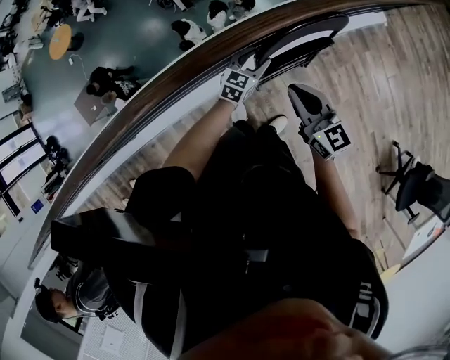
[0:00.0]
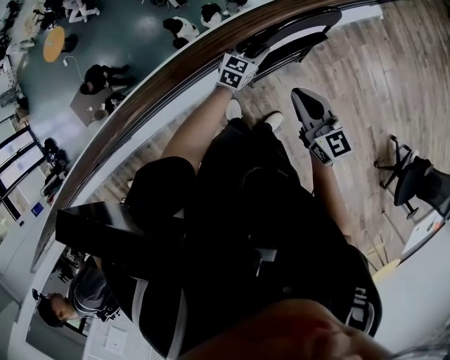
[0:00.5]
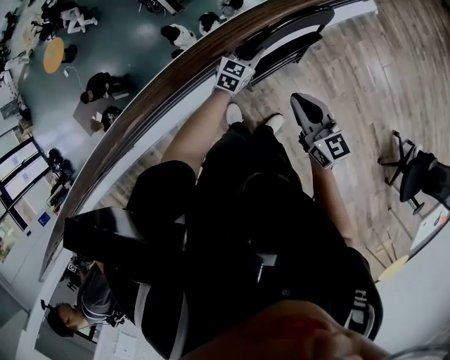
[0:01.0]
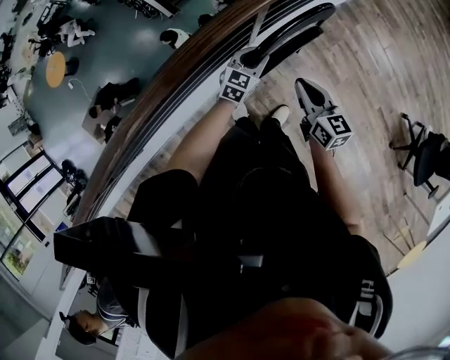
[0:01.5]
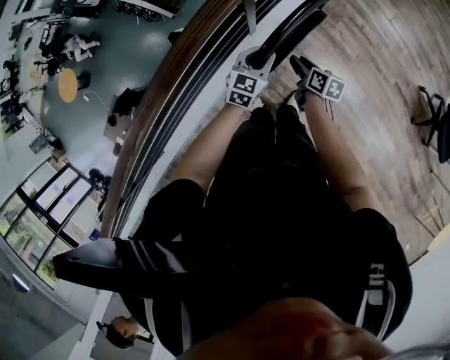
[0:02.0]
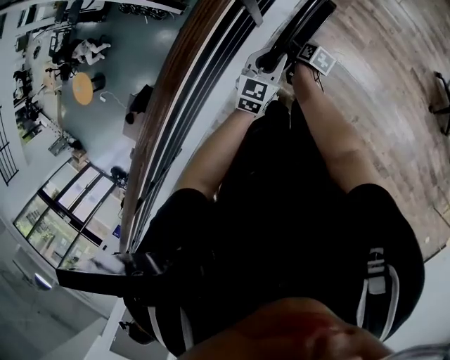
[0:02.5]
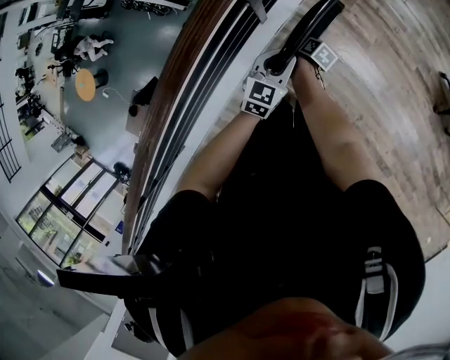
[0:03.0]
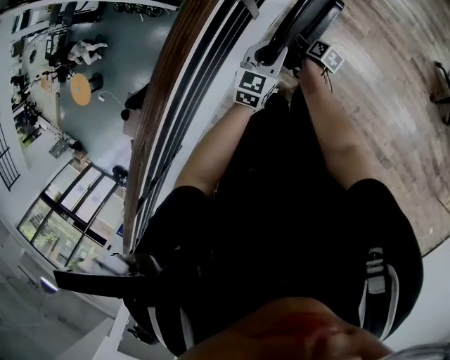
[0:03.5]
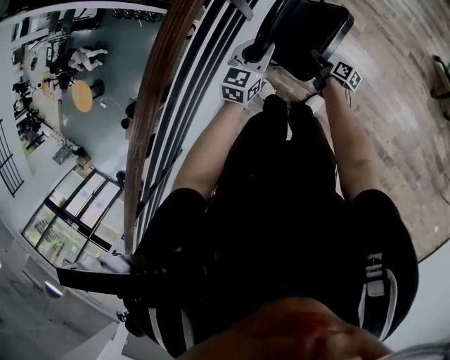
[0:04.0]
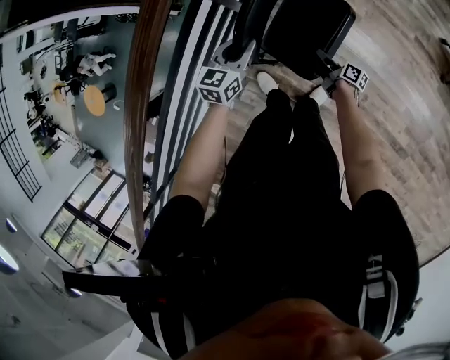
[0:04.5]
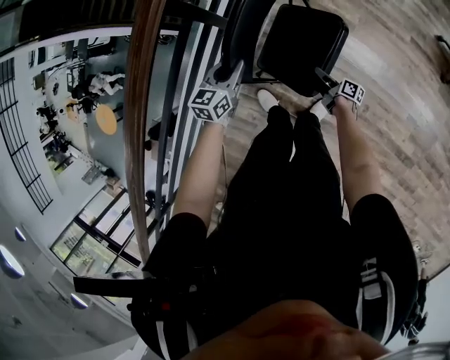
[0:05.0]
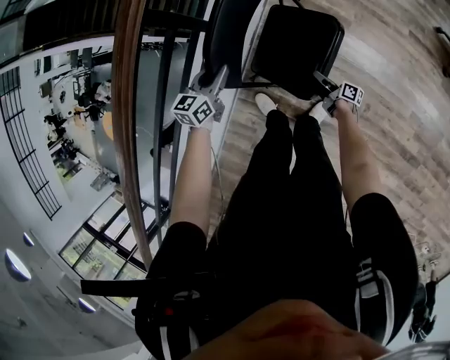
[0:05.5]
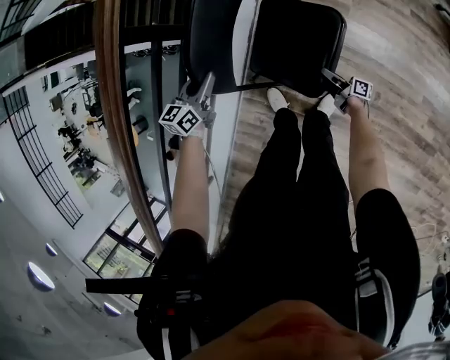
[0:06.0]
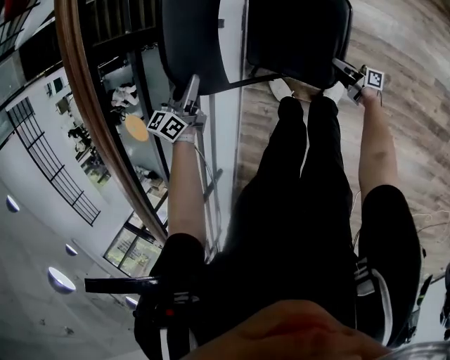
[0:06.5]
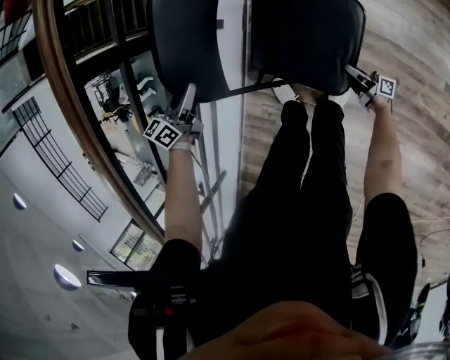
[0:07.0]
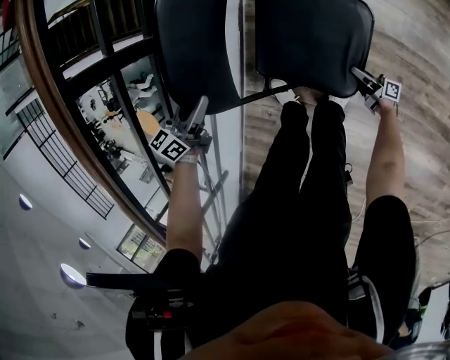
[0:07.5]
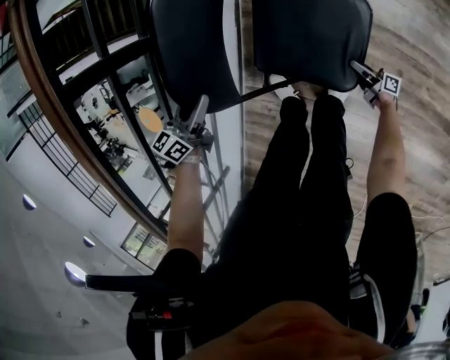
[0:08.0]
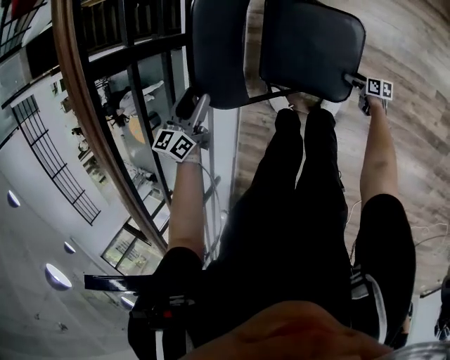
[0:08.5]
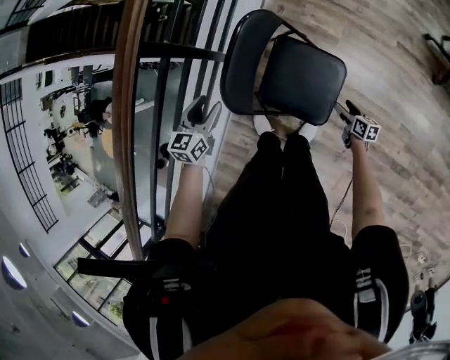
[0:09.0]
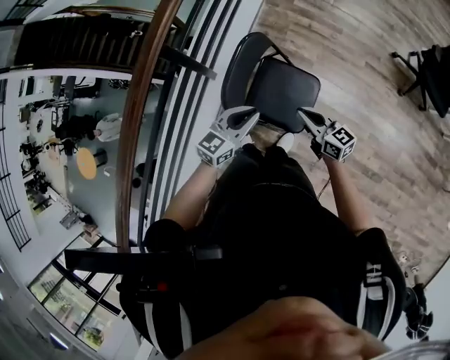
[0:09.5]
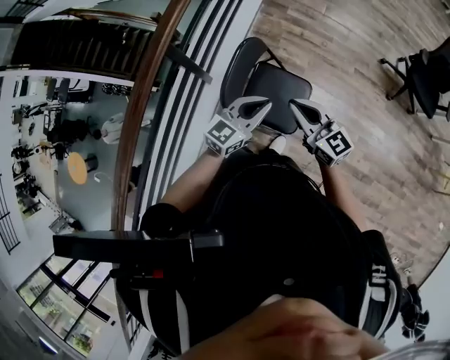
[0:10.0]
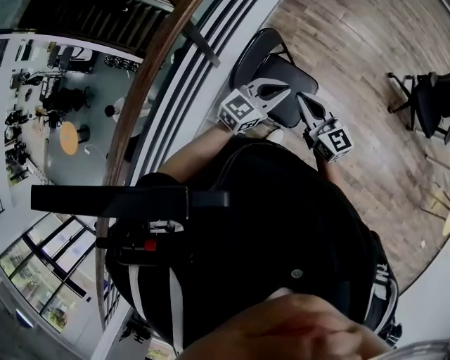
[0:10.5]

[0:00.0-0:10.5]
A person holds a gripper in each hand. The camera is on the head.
0:00.0 to 0:02.0: The right gripper moves downward and to the right, approximately 30 cm, swivels about 60 degrees, and opens up. The left gripper heads to the right, covering some 10 cm, and closes up.
0:02.0 to 0:04.0: The right gripper goes approximately 20 cm downward and to the right, and turns by some 30 degrees.
0:04.0 to 0:06.5: The left gripper is displaced downward by roughly 10 cm, while the right gripper heads to the right, downward and backward, covering some 30 cm, and tilts its fingers approximately 40 degrees upward.
0:06.5 to 0:08.5: The right gripper travels downward, to the right and backward by approximately 35 cm, points its fingers approximately 40 degrees further downward, and opens. The left gripper shifts some 25 cm to the right, backward and downward, and opens.
0:08.5 to 0:10.5: The left gripper heads upward, covering about 50 cm, rotates approximately 40 degrees, and closes its fingers, while the right gripper travels upward by some 90 cm, rotates around the line of its fingers by approximately 60 degrees, counterclockwise from behind, and closes.

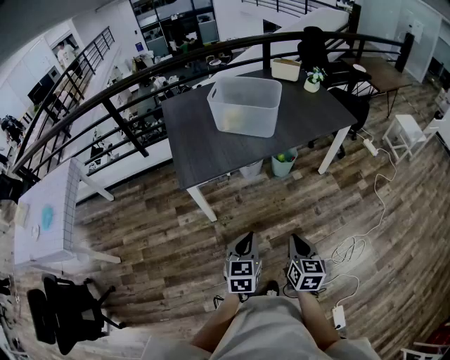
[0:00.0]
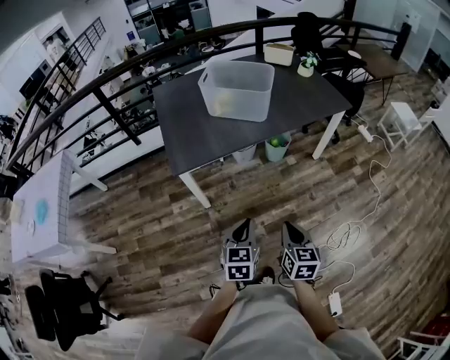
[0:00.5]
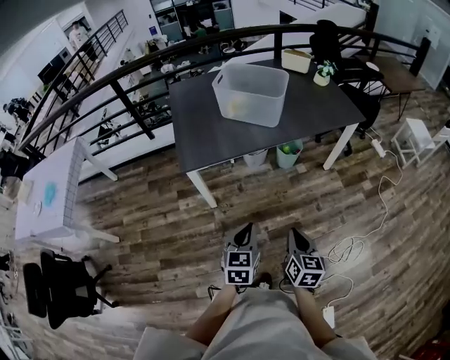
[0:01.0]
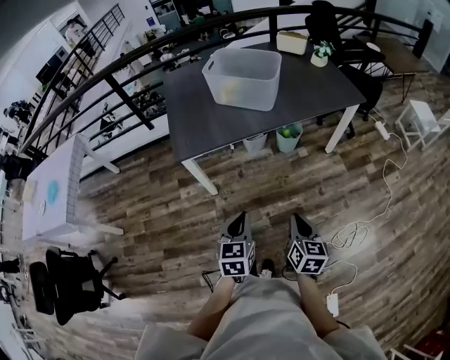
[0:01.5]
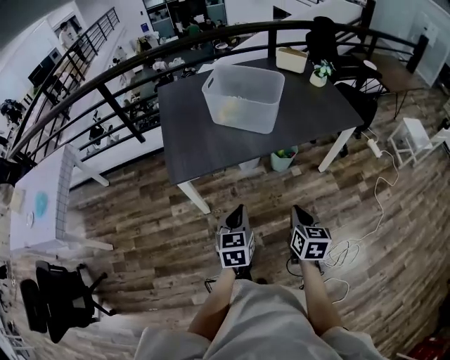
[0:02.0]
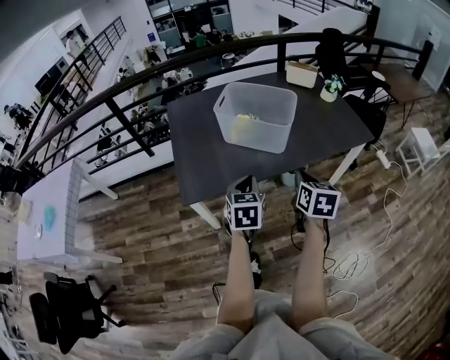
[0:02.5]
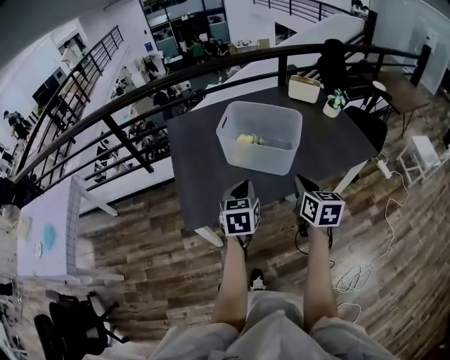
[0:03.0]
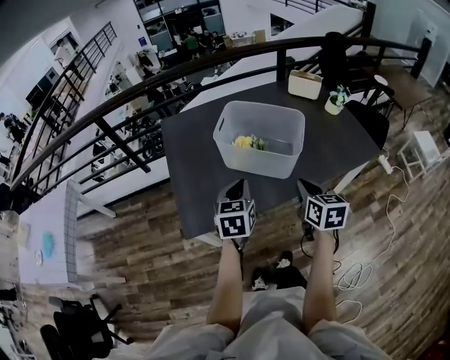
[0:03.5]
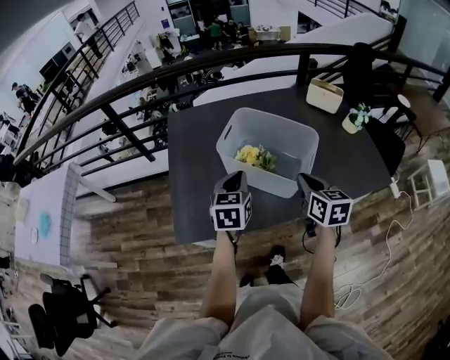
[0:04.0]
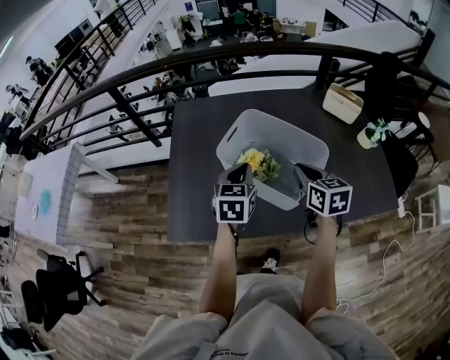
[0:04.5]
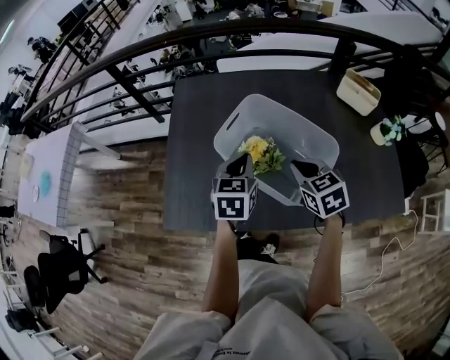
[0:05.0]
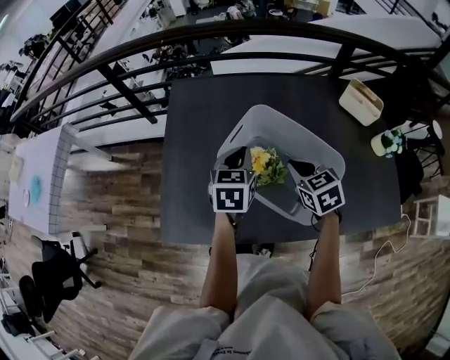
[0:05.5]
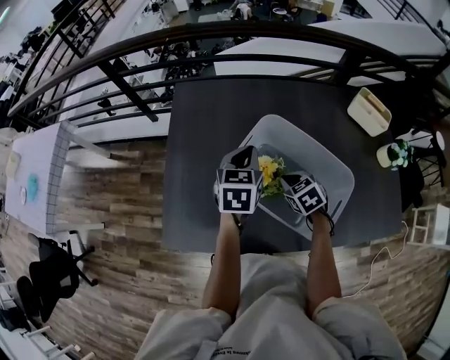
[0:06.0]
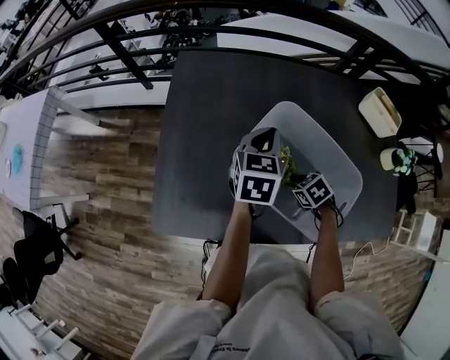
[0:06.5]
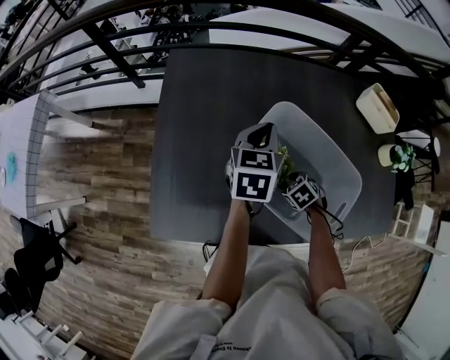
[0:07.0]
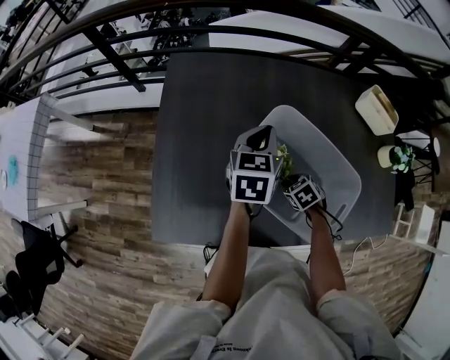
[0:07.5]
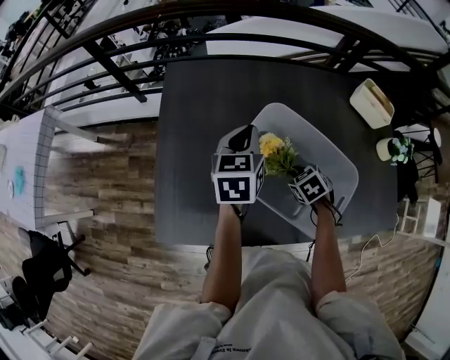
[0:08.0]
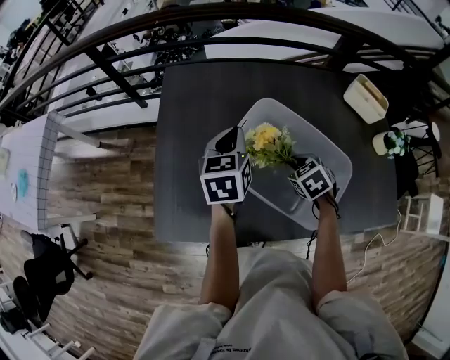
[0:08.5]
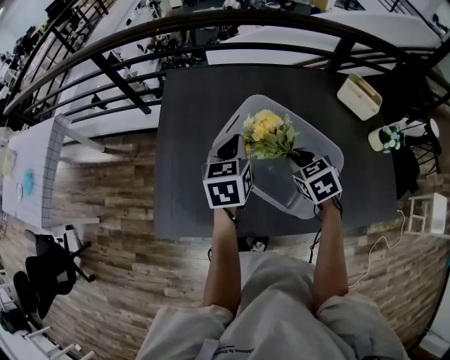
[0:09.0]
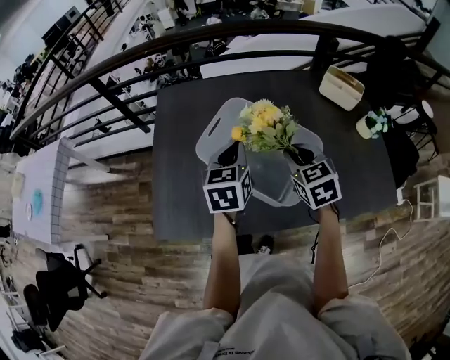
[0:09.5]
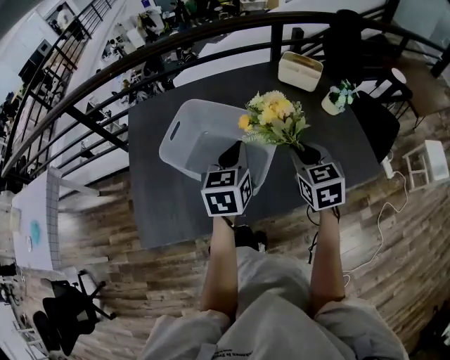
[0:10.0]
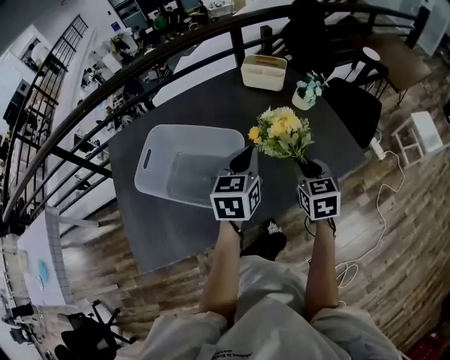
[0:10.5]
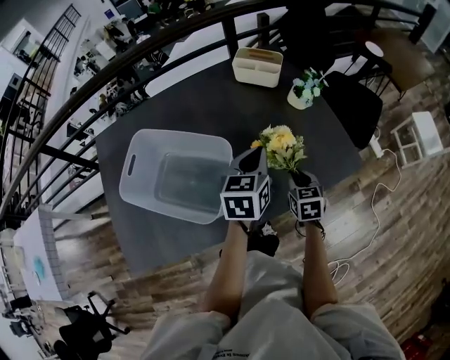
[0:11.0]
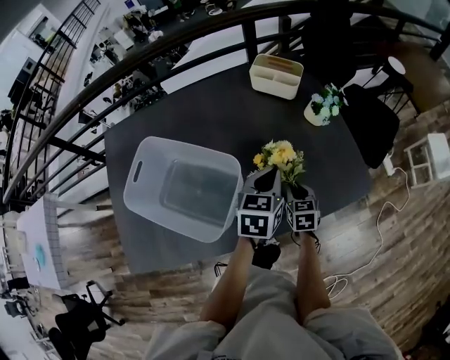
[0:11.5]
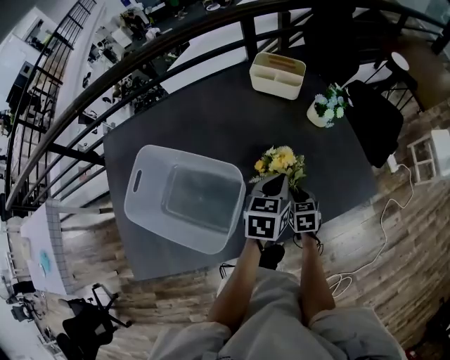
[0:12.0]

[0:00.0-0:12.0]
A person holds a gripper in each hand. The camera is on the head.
0:00.0 to 0:02.0: The grippers both shift forward by approximately 15 cm.
0:02.0 to 0:04.0: The two grippers go some 40 cm forward.
0:04.0 to 0:06.0: The right gripper shifts approximately 25 cm forward and downward, and tilts its fingers some 30 degrees downward. Meanwhile the left gripper travels forward by some 20 cm.
0:06.0 to 0:08.0: The right gripper is displaced downward by roughly 5 cm, and opens, then closes again.
0:08.0 to 0:10.0: The left gripper heads backward and to the right, covering some 25 cm; the right gripper goes some 30 cm upward, to the right and backward, and angles its fingers upward, by roughly 40 degrees.
0:10.0 to 0:12.0: The left gripper travels to the right, forward and downward by roughly 30 cm, and swivels about 20 degrees. The right gripper travels downward and to the right by approximately 30 cm, and turns by roughly 30 degrees.

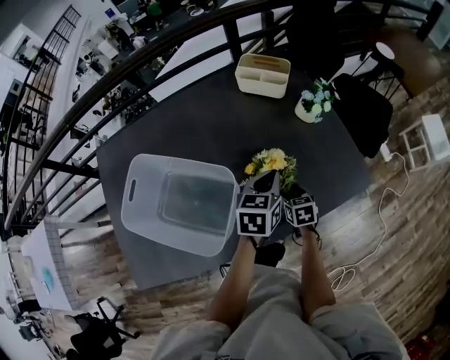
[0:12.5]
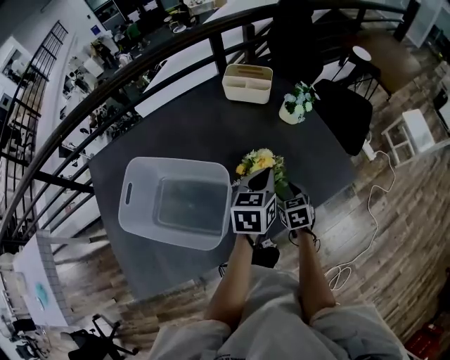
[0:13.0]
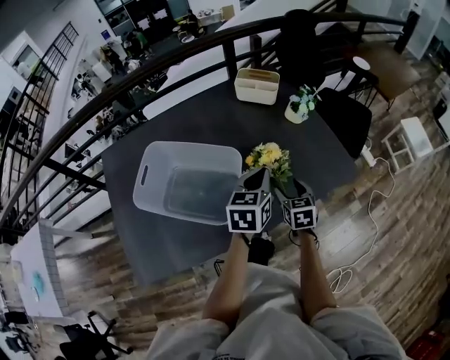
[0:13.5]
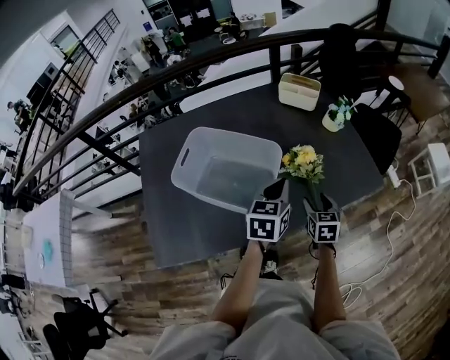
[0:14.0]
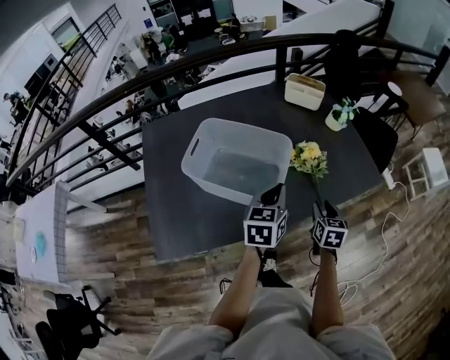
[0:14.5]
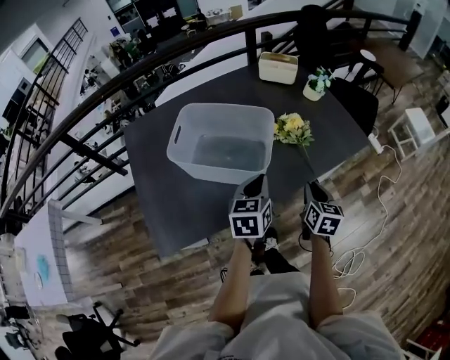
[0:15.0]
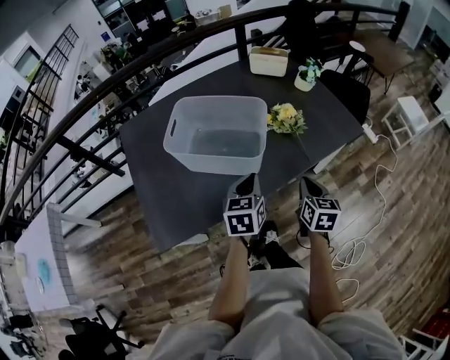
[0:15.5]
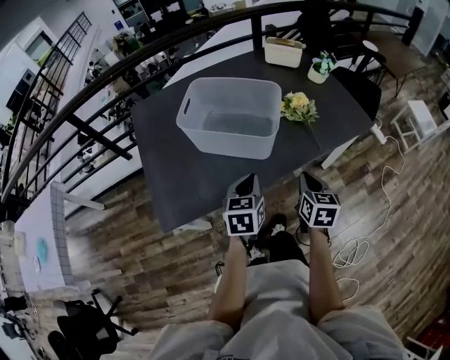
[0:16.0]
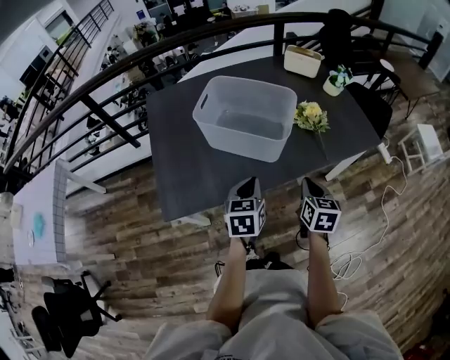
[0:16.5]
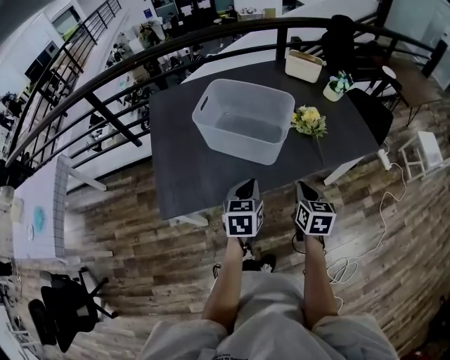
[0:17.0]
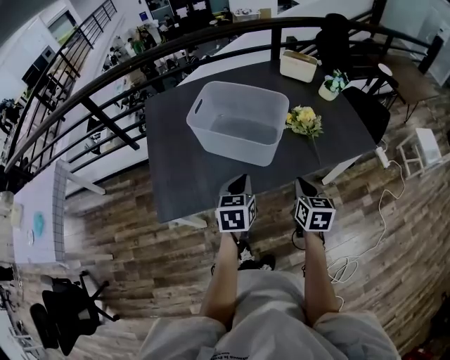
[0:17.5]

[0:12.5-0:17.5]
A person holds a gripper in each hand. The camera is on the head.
0:12.5 to 0:15.0: The right gripper heads backward and upward, covering about 30 cm, swivels about 30 degrees, and closes up; the left gripper goes some 30 cm backward and to the left.
0:15.0 to 0:17.5: The left gripper shifts some 10 cm backward and to the left. Meanwhile the right gripper goes some 10 cm to the left and backward.
